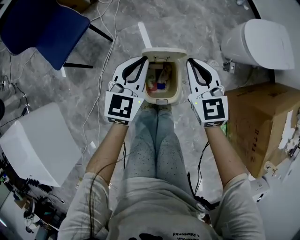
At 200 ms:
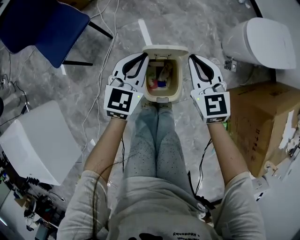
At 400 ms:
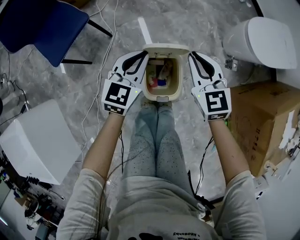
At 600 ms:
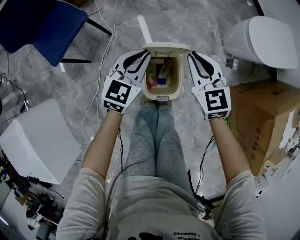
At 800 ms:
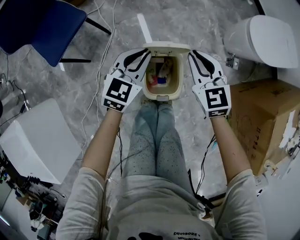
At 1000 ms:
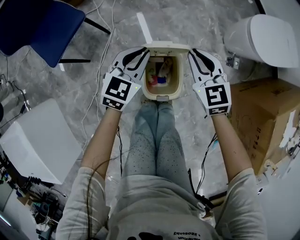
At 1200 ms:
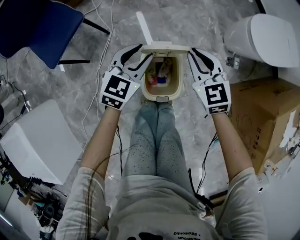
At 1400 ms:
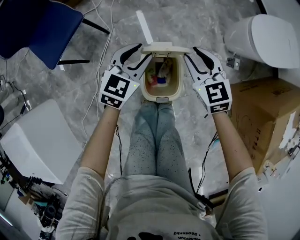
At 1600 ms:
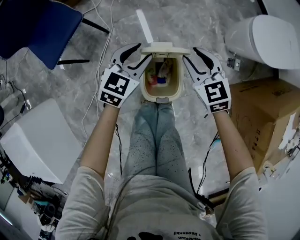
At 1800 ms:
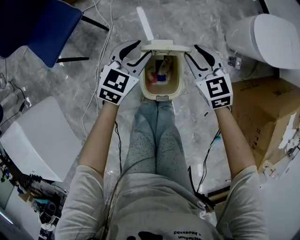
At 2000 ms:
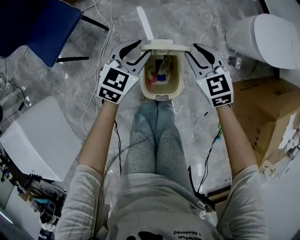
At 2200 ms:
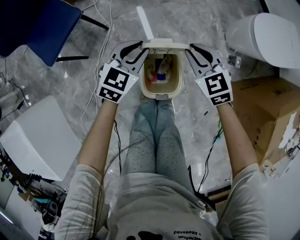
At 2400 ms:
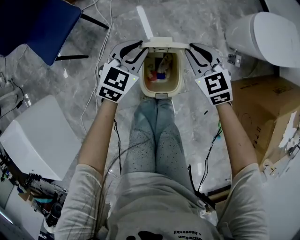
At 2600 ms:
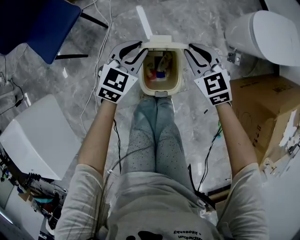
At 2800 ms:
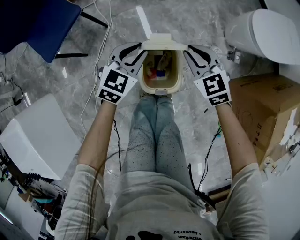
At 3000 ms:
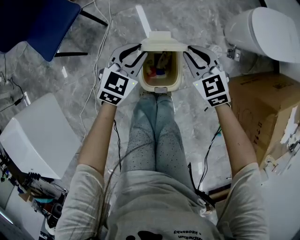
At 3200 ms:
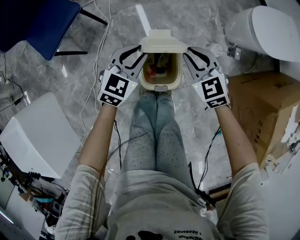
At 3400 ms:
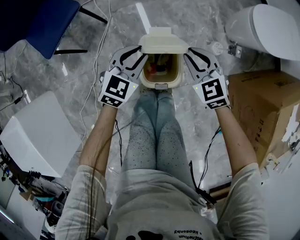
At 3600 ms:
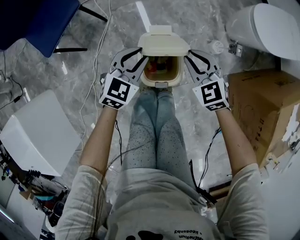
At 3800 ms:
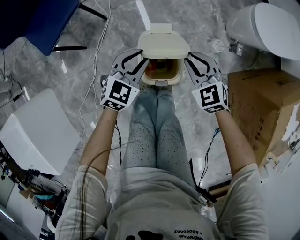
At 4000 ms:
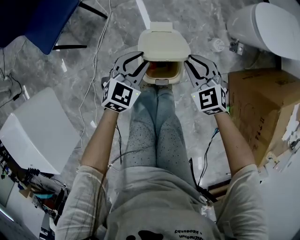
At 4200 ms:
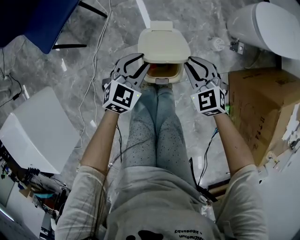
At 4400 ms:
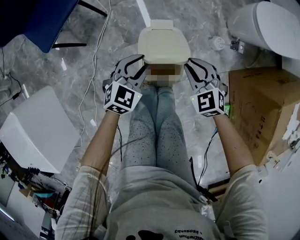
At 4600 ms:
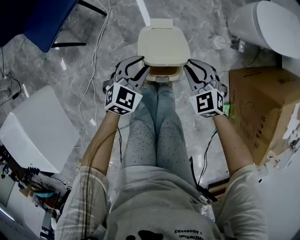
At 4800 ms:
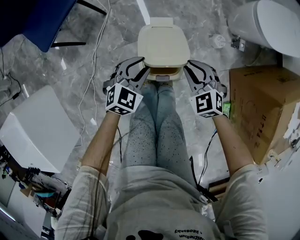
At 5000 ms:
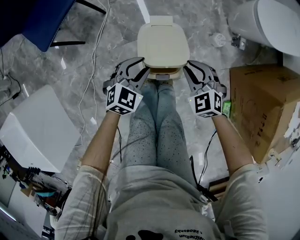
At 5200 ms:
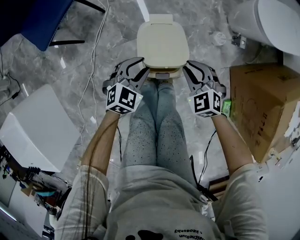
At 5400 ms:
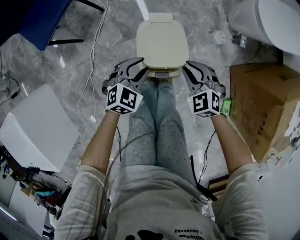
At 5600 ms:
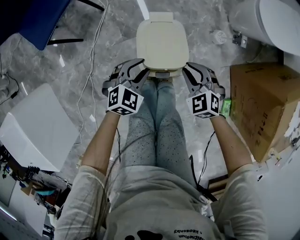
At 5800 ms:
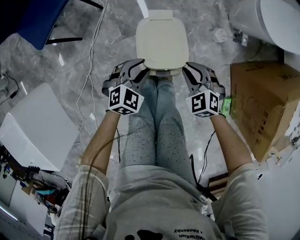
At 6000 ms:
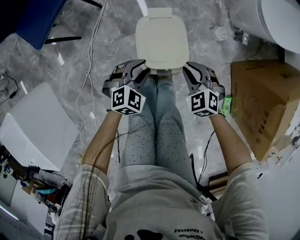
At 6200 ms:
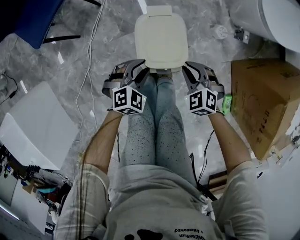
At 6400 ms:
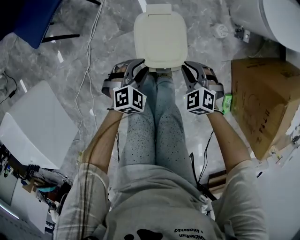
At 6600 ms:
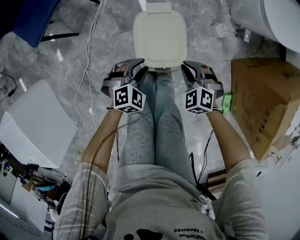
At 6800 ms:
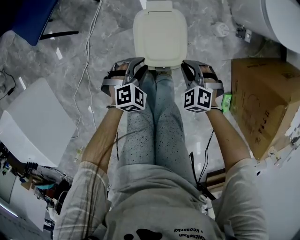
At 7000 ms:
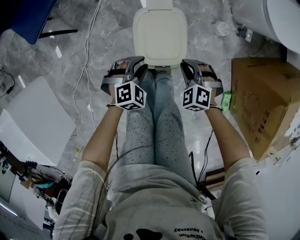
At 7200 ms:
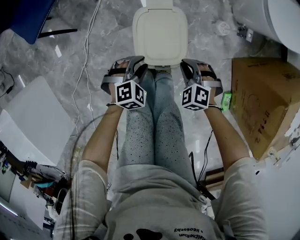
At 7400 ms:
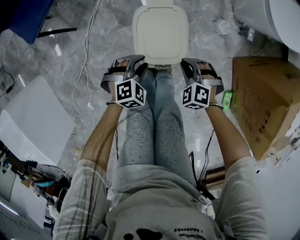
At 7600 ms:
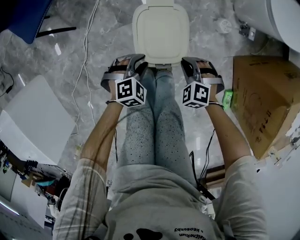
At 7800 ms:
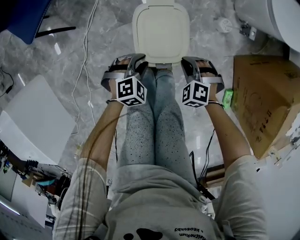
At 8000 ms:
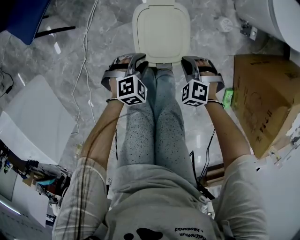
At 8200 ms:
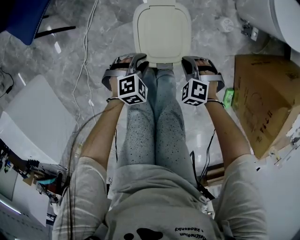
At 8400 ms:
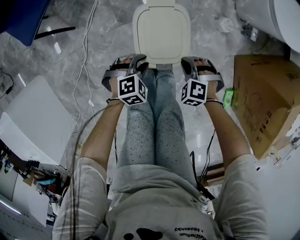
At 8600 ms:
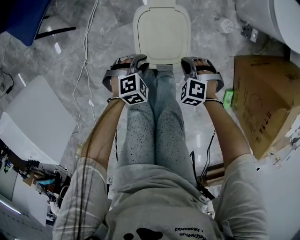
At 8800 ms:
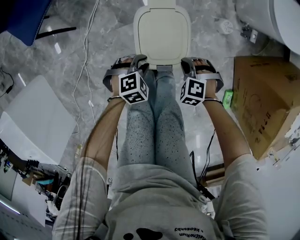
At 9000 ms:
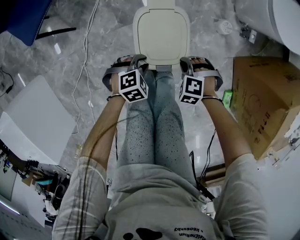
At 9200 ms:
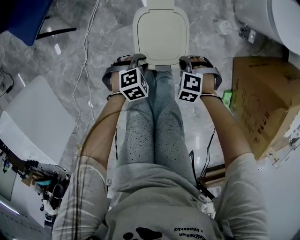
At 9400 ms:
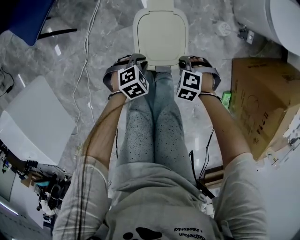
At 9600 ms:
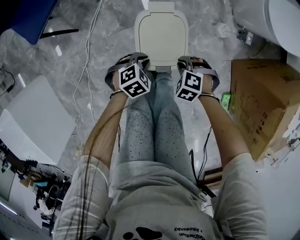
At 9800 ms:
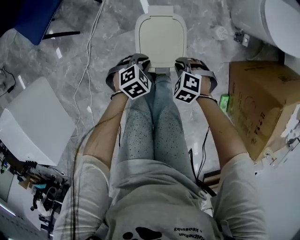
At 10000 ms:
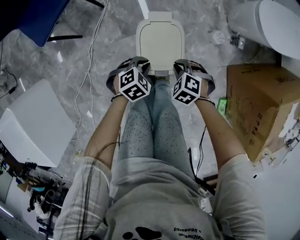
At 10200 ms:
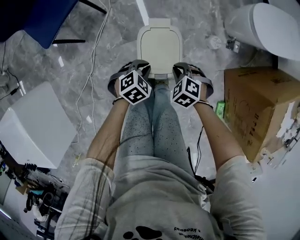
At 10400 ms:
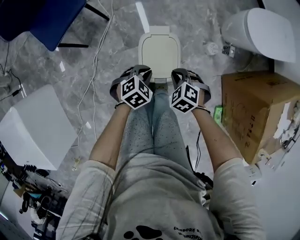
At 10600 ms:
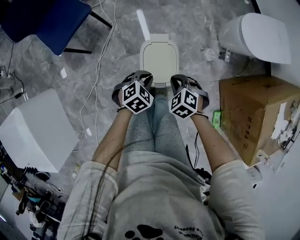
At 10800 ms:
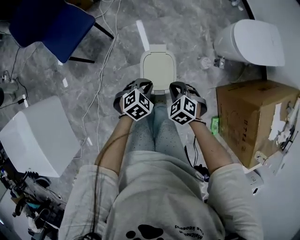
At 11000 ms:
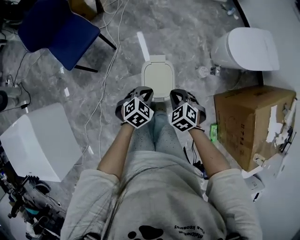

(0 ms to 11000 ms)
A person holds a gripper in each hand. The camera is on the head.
0 ms - 1600 ms: The left gripper is displaced downward and forward by about 10 cm, and opens up. Meanwhile the right gripper moves downward, about 10 cm, and opens up.
1600 ms - 3200 ms: Both grippers move backward, some 5 cm.
3200 ms - 4800 ms: The grippers both shift backward and downward by approximately 10 cm.
4800 ms - 6200 ms: Both grippers move downward, approximately 5 cm.
6200 ms - 7800 ms: The grippers both shift downward by some 5 cm.
7800 ms - 9400 ms: The grippers stay close to where they were, moving slightly.
9400 ms - 11000 ms: Both grippers move upward, some 35 cm. The right gripper rotates roughly 40 degrees; the left gripper rotates some 20 degrees.

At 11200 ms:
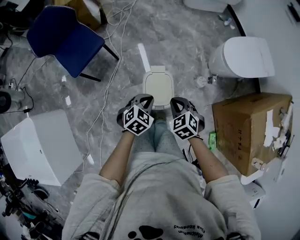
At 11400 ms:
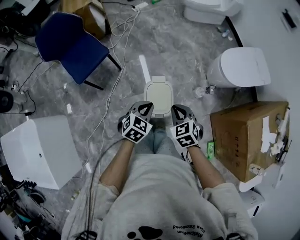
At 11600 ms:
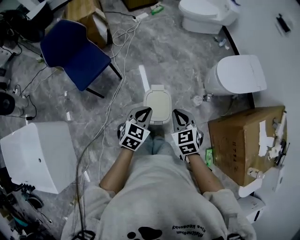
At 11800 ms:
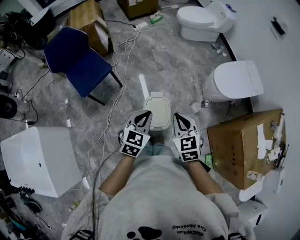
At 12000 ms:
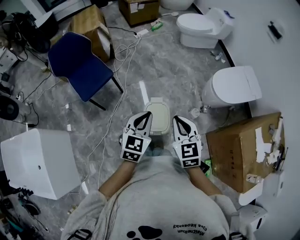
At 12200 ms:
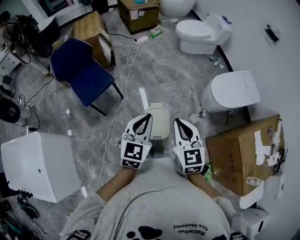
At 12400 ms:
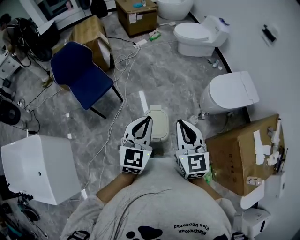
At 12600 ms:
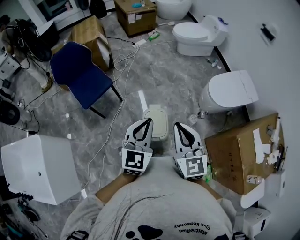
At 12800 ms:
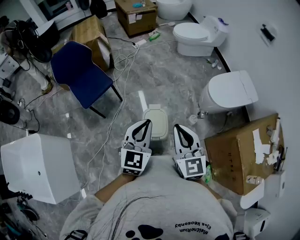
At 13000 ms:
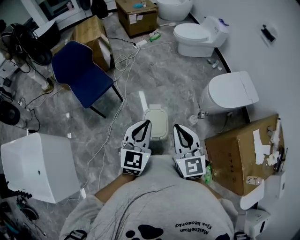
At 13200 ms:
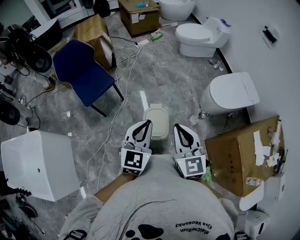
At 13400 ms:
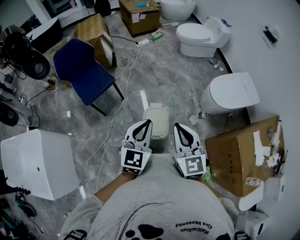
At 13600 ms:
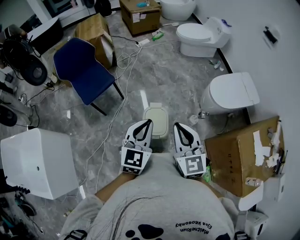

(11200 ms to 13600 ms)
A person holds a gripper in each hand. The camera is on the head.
11200 ms - 12400 ms: Both grippers move upward, about 35 cm. The left gripper tilts its fingers approximately 40 degrees upward; the right gripper angles its fingers upward, by roughly 40 degrees.
12400 ms - 13600 ms: The grippers stay close to where they were, moving slightly.

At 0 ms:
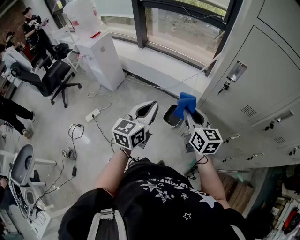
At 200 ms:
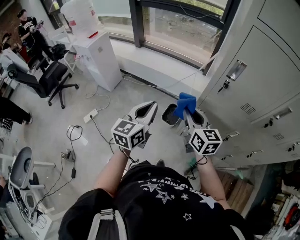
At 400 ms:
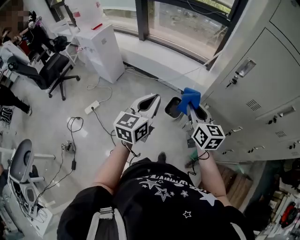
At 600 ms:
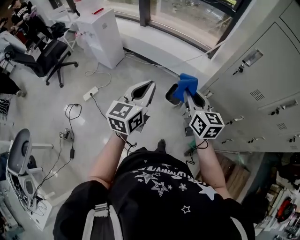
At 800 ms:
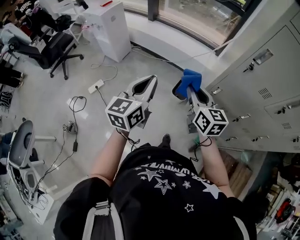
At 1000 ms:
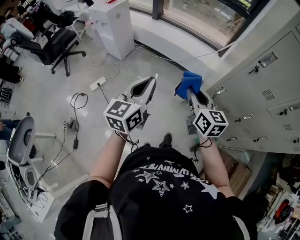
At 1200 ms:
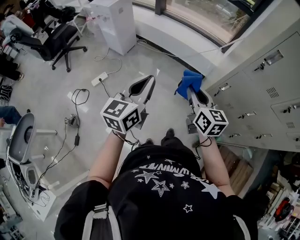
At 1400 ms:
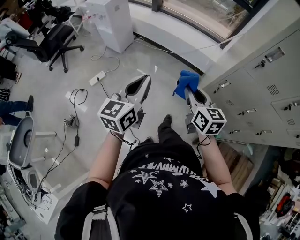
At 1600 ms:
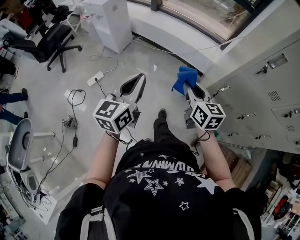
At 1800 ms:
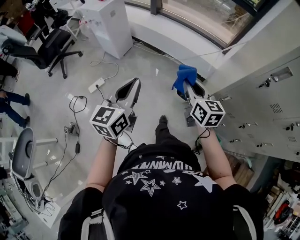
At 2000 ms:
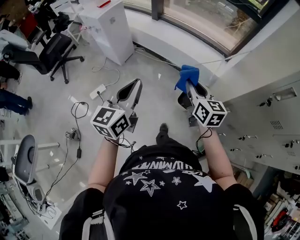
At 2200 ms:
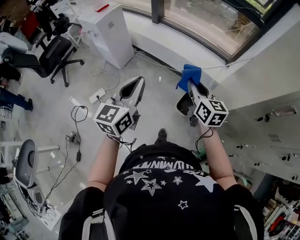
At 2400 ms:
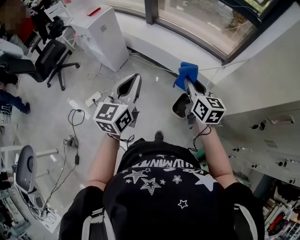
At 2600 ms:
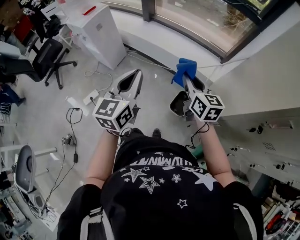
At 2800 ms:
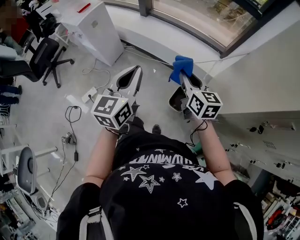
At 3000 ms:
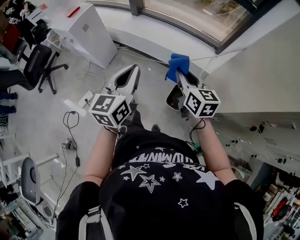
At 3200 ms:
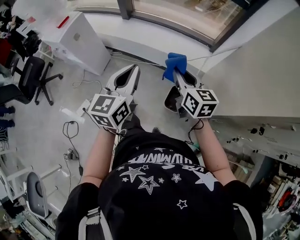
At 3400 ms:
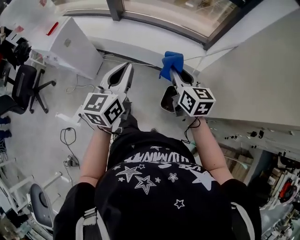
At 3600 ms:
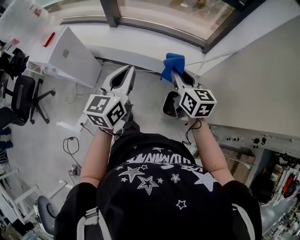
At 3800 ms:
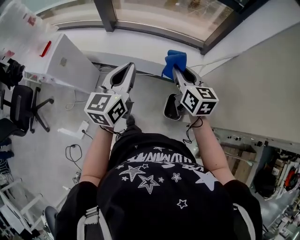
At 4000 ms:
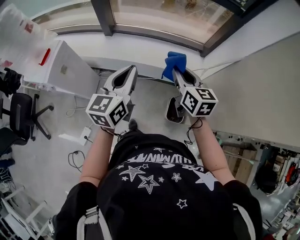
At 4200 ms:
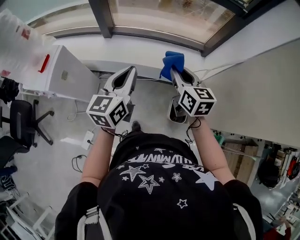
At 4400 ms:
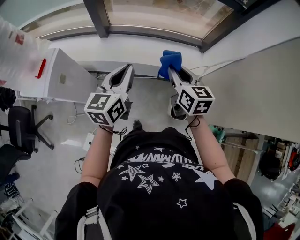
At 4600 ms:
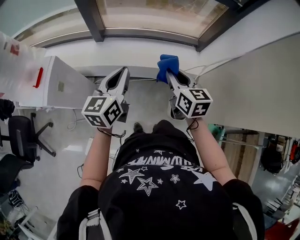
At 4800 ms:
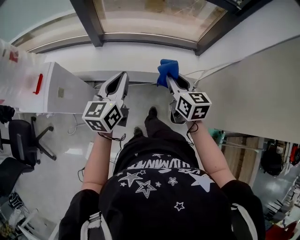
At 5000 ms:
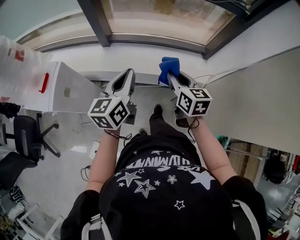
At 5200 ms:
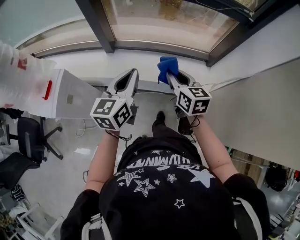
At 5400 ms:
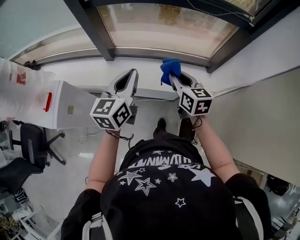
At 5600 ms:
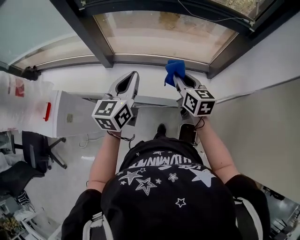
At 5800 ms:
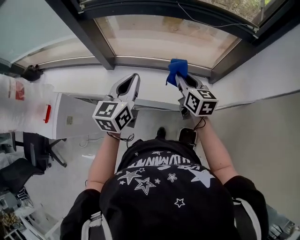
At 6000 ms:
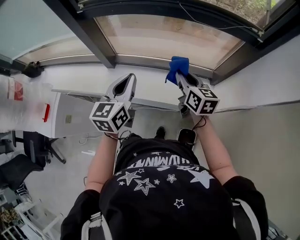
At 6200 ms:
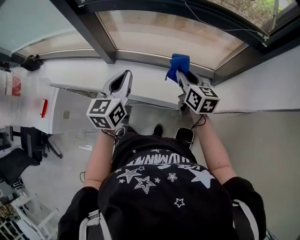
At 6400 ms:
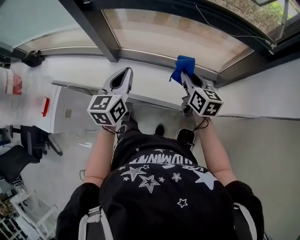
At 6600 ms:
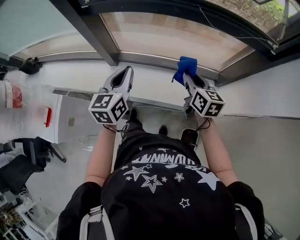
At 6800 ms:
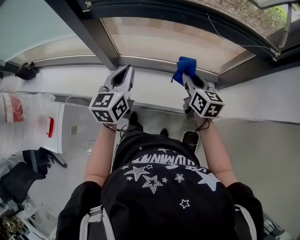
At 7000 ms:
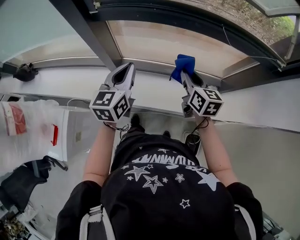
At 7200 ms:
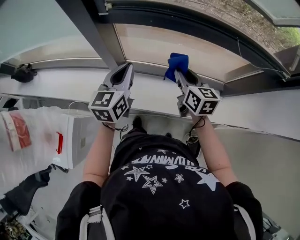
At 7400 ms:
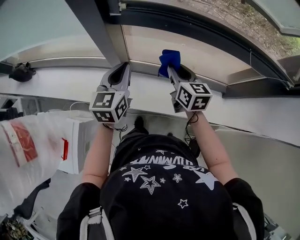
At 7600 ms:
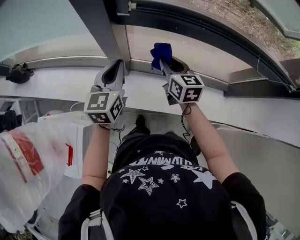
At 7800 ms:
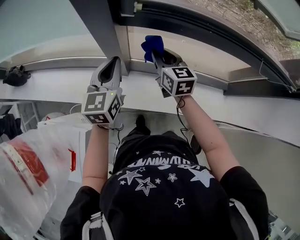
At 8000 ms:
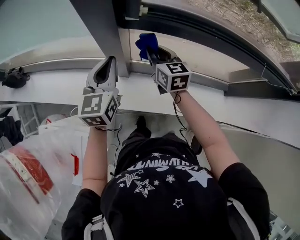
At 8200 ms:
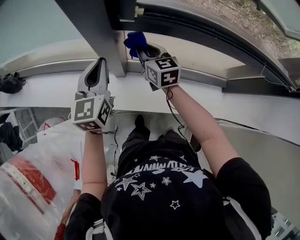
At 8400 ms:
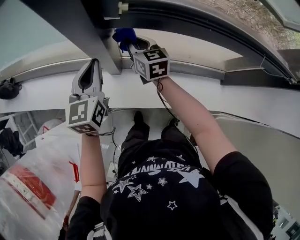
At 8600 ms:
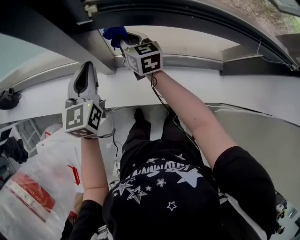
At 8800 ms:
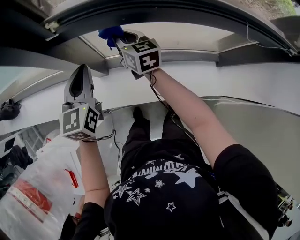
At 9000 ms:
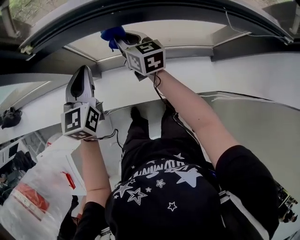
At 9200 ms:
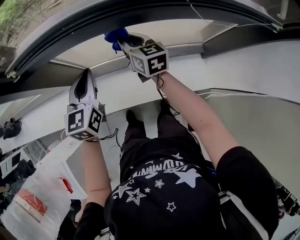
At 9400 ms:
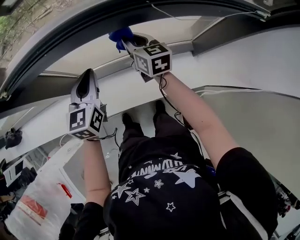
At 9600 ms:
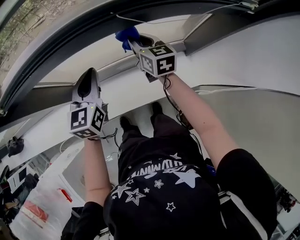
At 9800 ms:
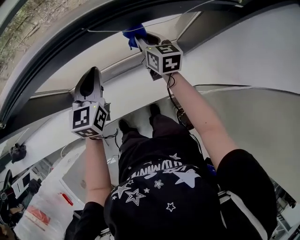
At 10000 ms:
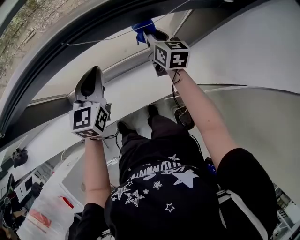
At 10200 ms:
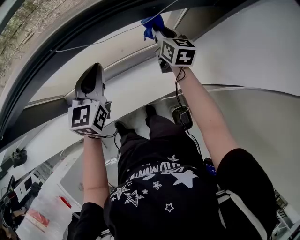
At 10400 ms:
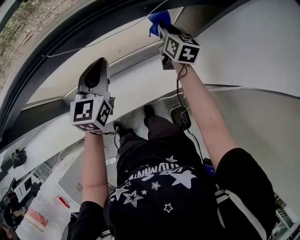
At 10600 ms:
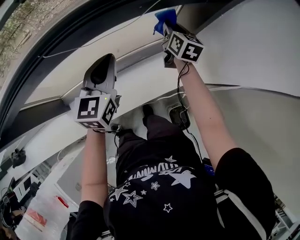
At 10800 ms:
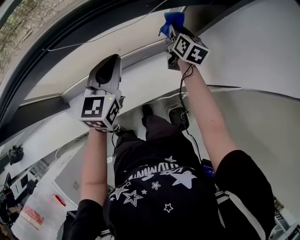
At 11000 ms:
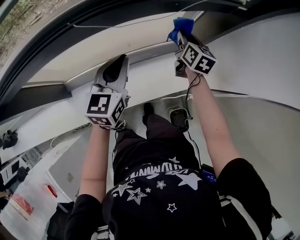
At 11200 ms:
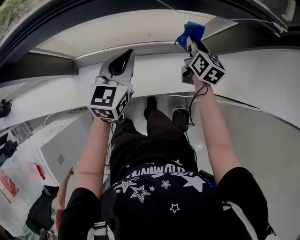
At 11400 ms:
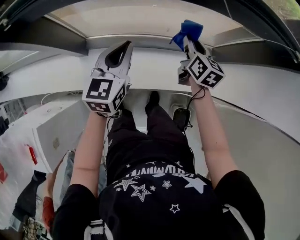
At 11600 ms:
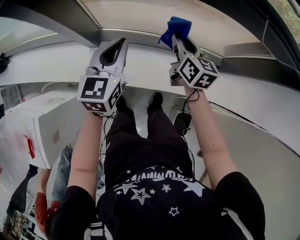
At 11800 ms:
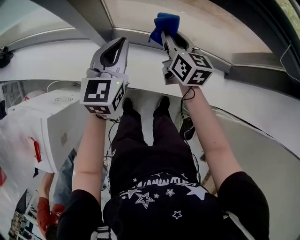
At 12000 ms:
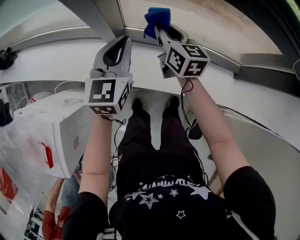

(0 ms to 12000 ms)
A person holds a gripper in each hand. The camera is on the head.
0 ms - 1600 ms: Both grippers move to the left, approximately 20 cm.
1600 ms - 3000 ms: The two grippers go some 30 cm forward.
3000 ms - 4400 ms: The grippers both shift forward and to the left by about 25 cm. The right gripper rotates about 20 degrees. The left gripper changes its angle by some 20 degrees.
4400 ms - 6000 ms: The grippers both shift forward by roughly 25 cm.
6000 ms - 7600 ms: The two grippers go roughly 35 cm to the left and forward.
7600 ms - 9000 ms: The right gripper shifts about 10 cm forward and to the right. Meanwhile the left gripper goes about 10 cm to the right.
9000 ms - 10400 ms: Both grippers are carried about 50 cm. The right gripper changes its angle by about 40 degrees. Meanwhile the left gripper swivels approximately 30 degrees.
10400 ms - 12000 ms: Both grippers are carried roughly 50 cm. The left gripper turns by some 30 degrees, while the right gripper swivels about 40 degrees.
